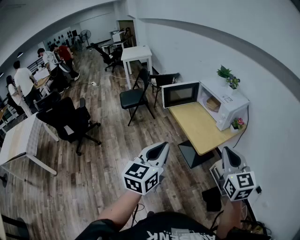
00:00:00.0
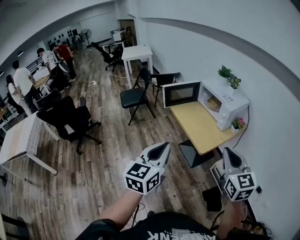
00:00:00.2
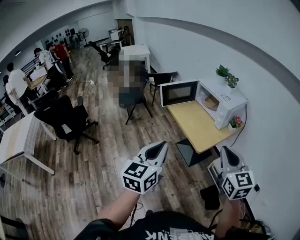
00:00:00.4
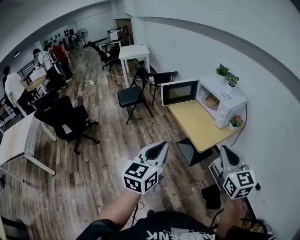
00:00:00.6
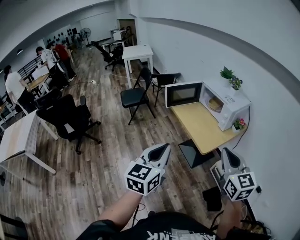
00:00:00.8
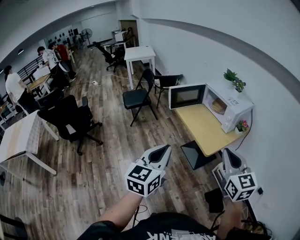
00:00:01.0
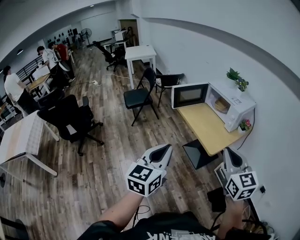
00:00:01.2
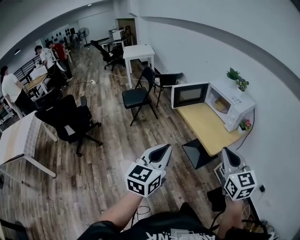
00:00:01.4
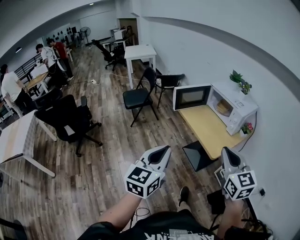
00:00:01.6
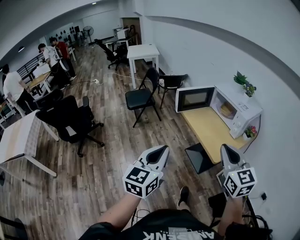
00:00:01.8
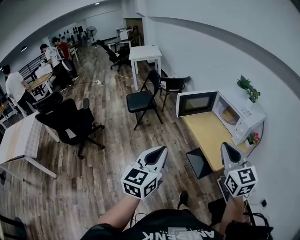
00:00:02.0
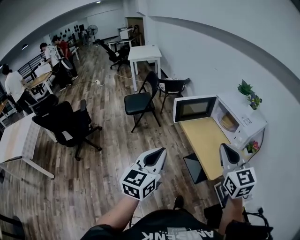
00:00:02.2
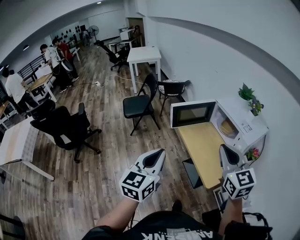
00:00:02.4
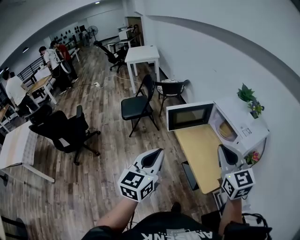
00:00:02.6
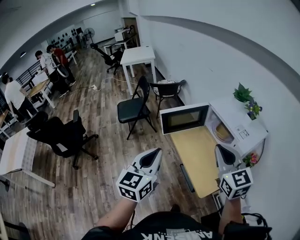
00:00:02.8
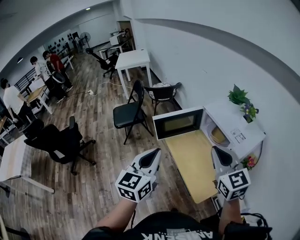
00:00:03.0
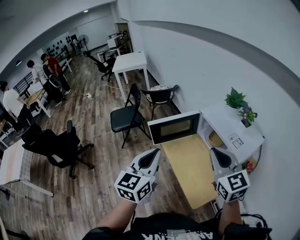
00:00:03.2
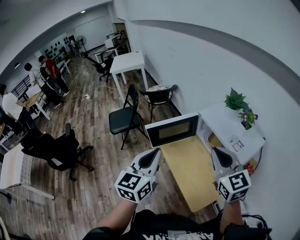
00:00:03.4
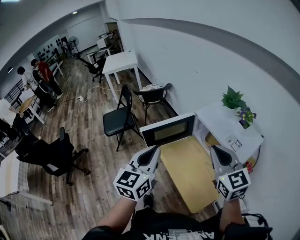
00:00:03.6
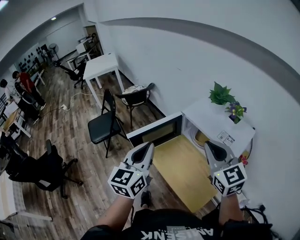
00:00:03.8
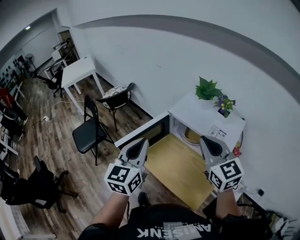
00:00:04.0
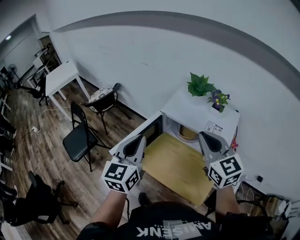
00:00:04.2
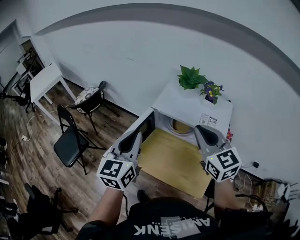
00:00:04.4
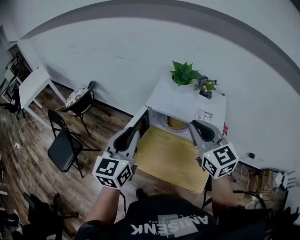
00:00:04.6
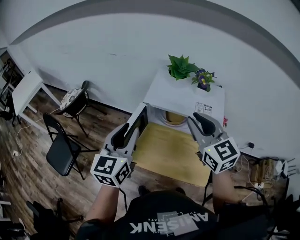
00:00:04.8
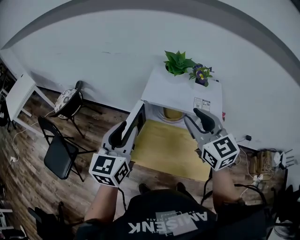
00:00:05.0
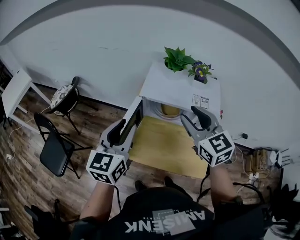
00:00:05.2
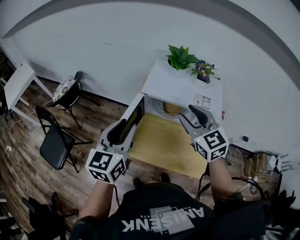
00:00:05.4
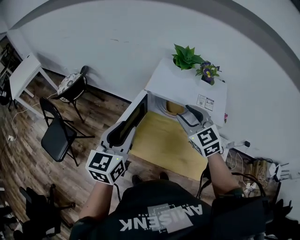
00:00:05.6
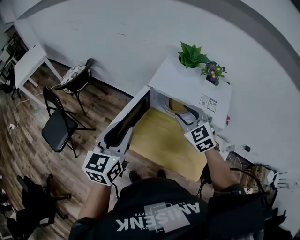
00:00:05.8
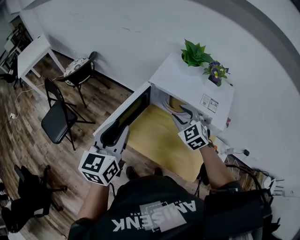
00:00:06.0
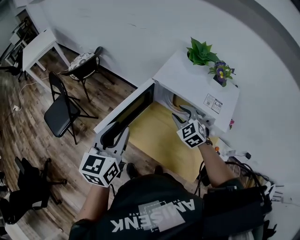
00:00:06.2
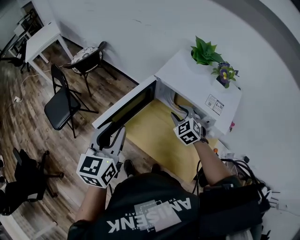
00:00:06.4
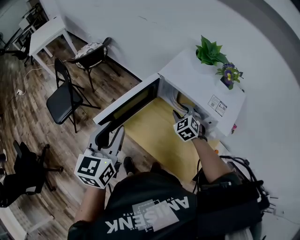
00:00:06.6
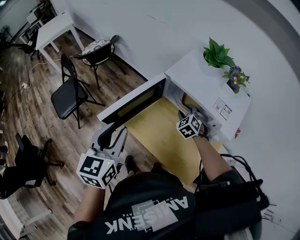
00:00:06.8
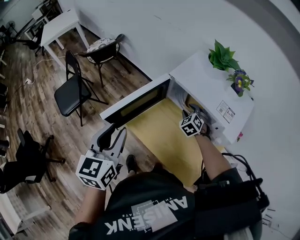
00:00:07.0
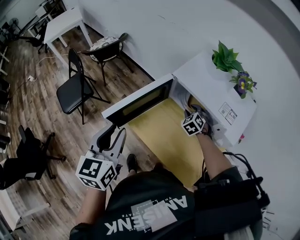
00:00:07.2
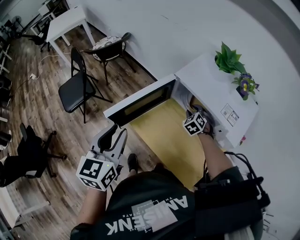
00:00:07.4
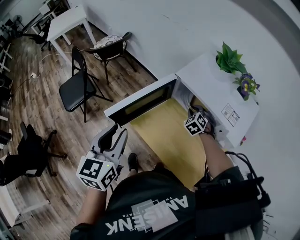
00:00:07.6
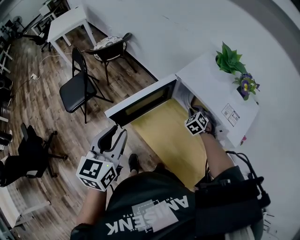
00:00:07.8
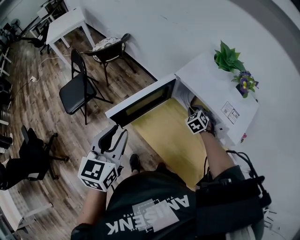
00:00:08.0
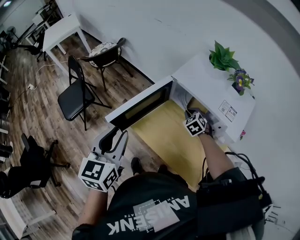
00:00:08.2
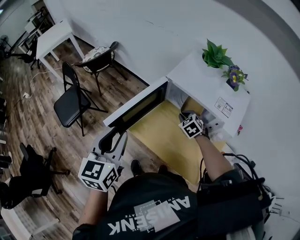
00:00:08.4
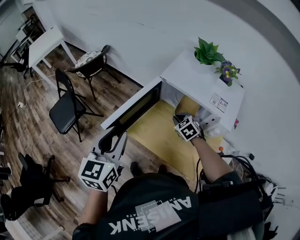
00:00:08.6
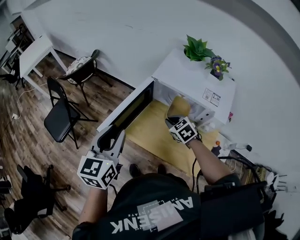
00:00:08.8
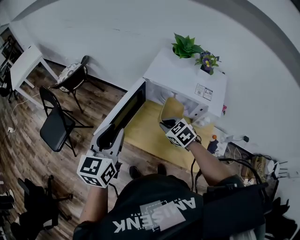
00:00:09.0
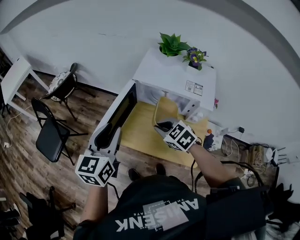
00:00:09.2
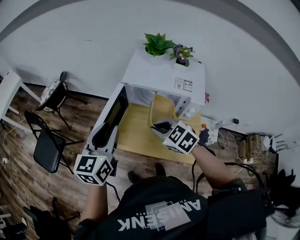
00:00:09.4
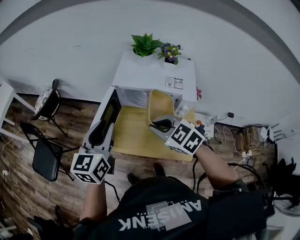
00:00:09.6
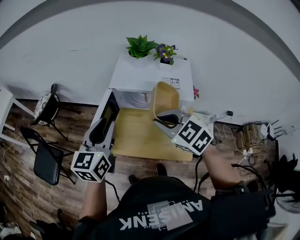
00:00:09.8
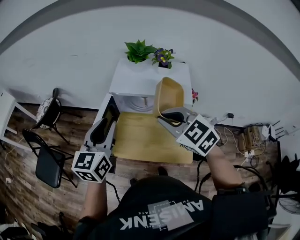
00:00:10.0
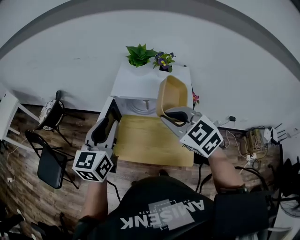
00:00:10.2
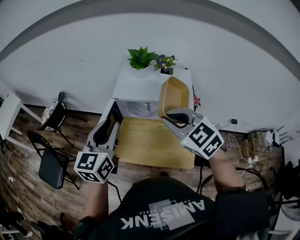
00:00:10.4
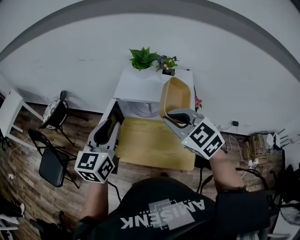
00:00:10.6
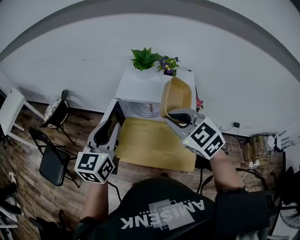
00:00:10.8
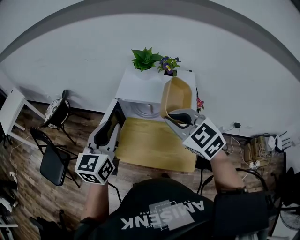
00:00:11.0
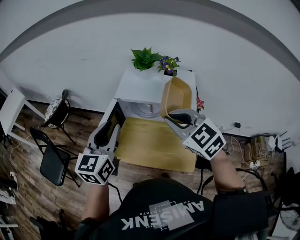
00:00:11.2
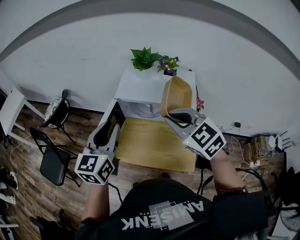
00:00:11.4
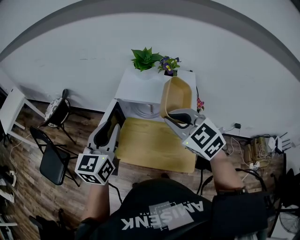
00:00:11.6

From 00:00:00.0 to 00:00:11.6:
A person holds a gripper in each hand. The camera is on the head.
From 00:00:00.0 to 00:00:01.4: Both grippers travel together to the left, some 10 cm.
From 00:00:01.4 to 00:00:02.8: Both grippers move forward, approximately 35 cm.
From 00:00:02.8 to 00:00:04.4: The left gripper shifts by approximately 35 cm, and swivels about 30 degrees, while the right gripper ends up roughly 20 cm from where it was, and swivels some 30 degrees.
From 00:00:04.4 to 00:00:05.8: The left gripper goes about 5 cm downward, and opens. Meanwhile the right gripper shifts approximately 15 cm downward and forward, turns by some 30 degrees, and opens up.
From 00:00:05.8 to 00:00:07.2: The left gripper goes approximately 5 cm backward, and rotates about 20 degrees. The right gripper travels downward and forward by approximately 25 cm, and rotates about 30 degrees.
From 00:00:07.2 to 00:00:08.8: The right gripper moves backward, to the left and upward, roughly 15 cm, changes its angle by some 30 degrees, and closes its fingers.
From 00:00:08.8 to 00:00:10.2: The right gripper heads upward, covering about 25 cm, and turns by some 20 degrees. Meanwhile the left gripper is displaced to the right and upward by some 10 cm, and changes its angle by some 20 degrees.
From 00:00:10.2 to 00:00:11.6: The grippers stay close to where they were, moving slightly.

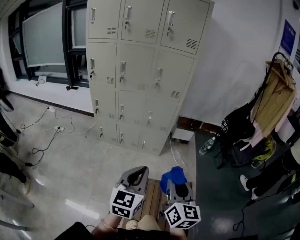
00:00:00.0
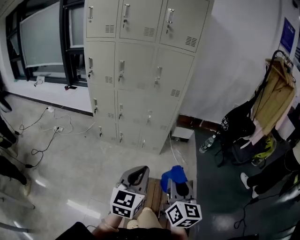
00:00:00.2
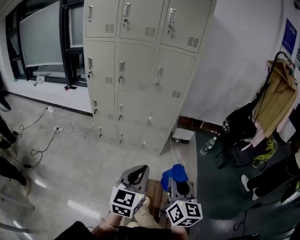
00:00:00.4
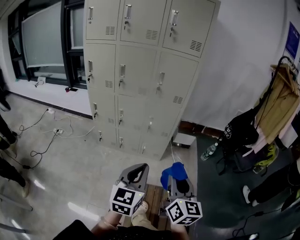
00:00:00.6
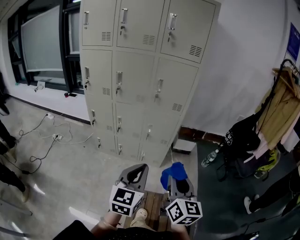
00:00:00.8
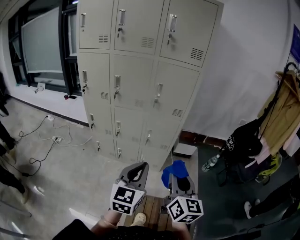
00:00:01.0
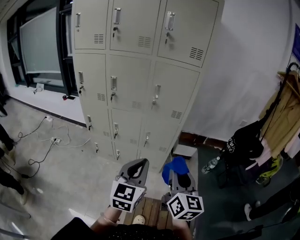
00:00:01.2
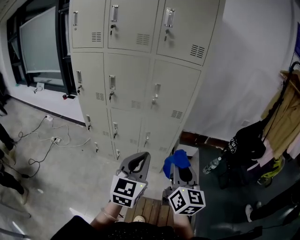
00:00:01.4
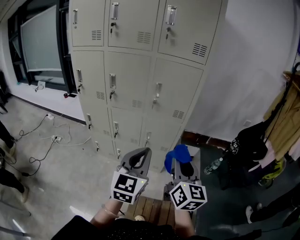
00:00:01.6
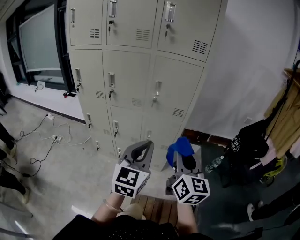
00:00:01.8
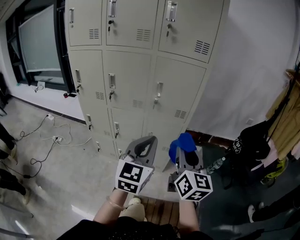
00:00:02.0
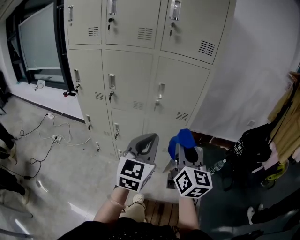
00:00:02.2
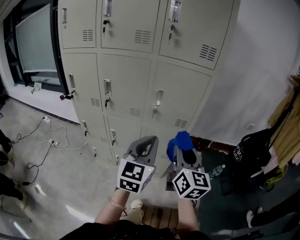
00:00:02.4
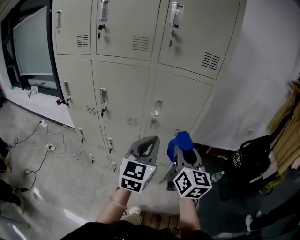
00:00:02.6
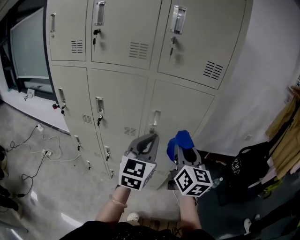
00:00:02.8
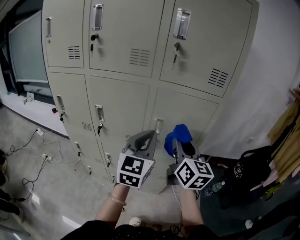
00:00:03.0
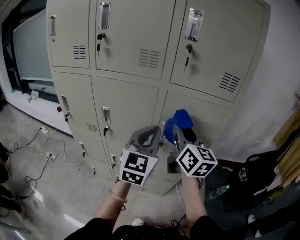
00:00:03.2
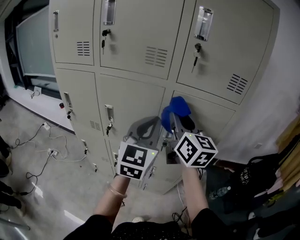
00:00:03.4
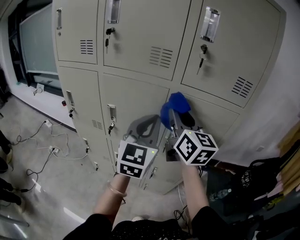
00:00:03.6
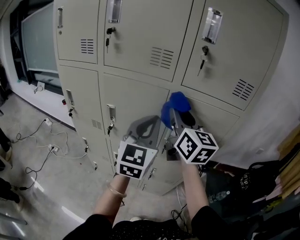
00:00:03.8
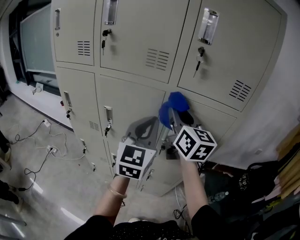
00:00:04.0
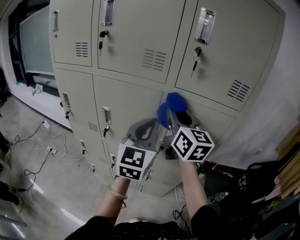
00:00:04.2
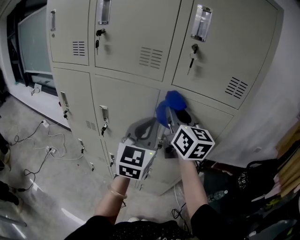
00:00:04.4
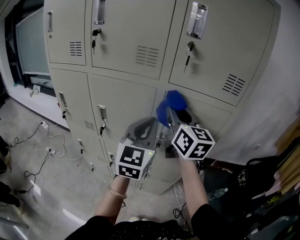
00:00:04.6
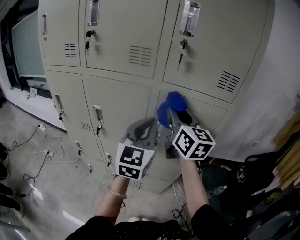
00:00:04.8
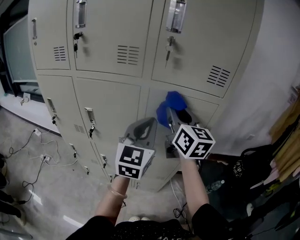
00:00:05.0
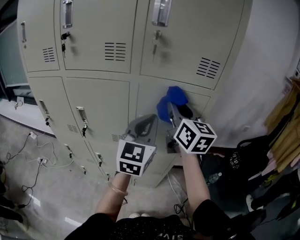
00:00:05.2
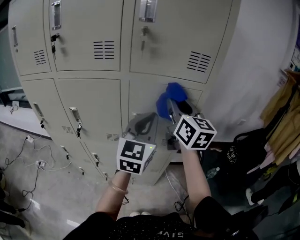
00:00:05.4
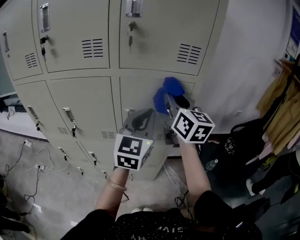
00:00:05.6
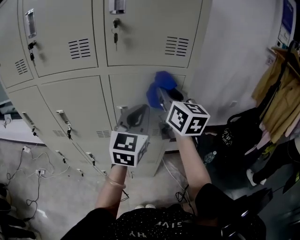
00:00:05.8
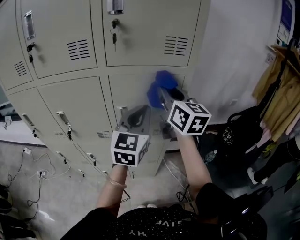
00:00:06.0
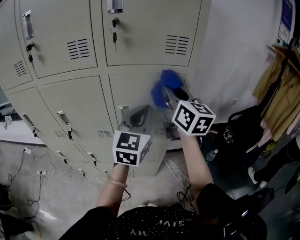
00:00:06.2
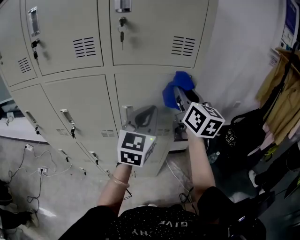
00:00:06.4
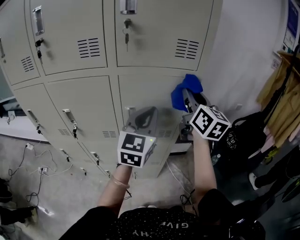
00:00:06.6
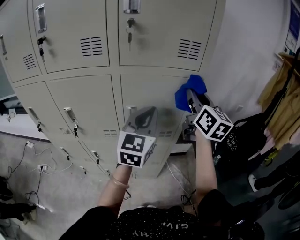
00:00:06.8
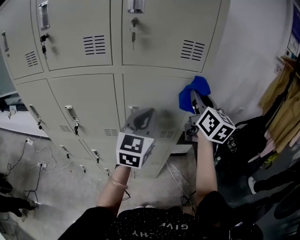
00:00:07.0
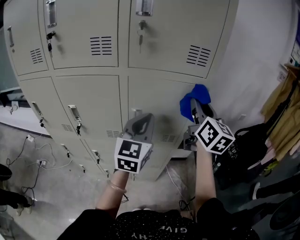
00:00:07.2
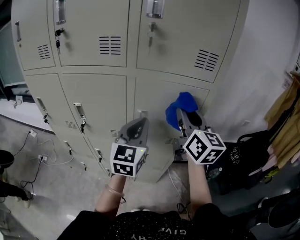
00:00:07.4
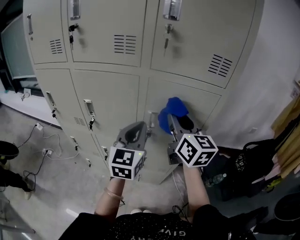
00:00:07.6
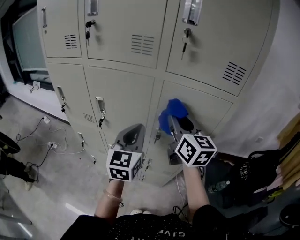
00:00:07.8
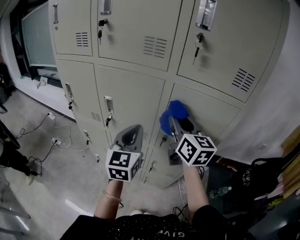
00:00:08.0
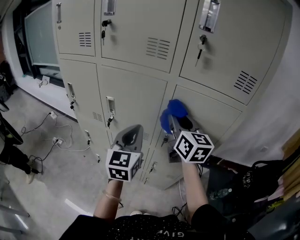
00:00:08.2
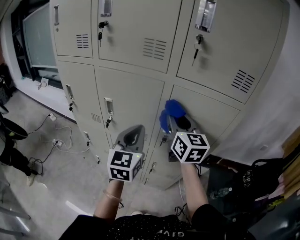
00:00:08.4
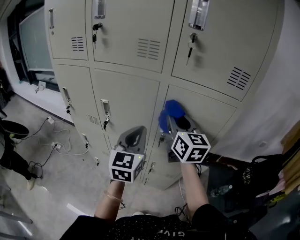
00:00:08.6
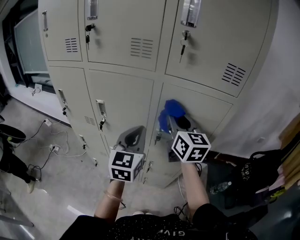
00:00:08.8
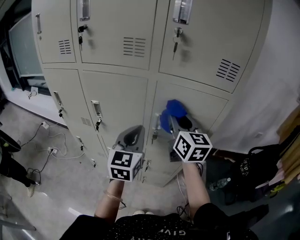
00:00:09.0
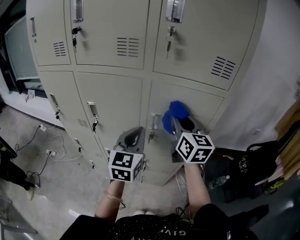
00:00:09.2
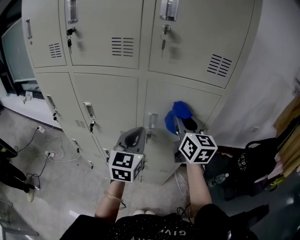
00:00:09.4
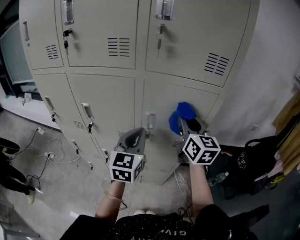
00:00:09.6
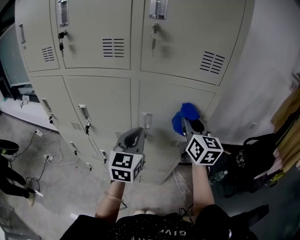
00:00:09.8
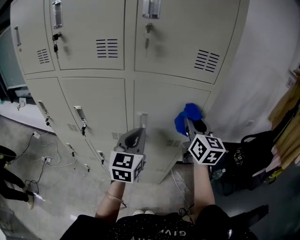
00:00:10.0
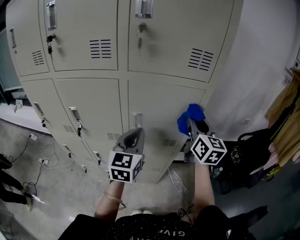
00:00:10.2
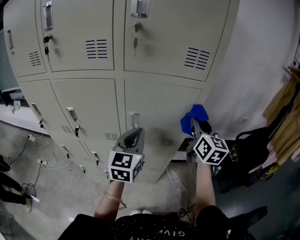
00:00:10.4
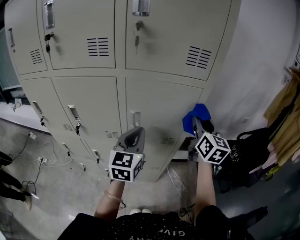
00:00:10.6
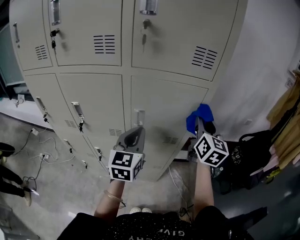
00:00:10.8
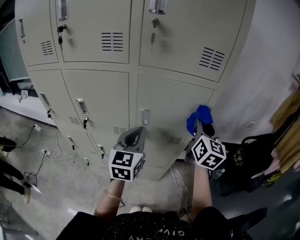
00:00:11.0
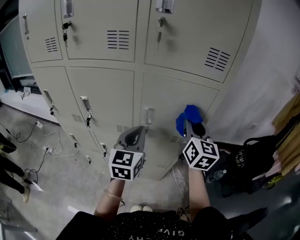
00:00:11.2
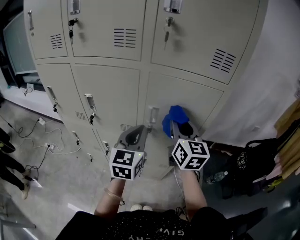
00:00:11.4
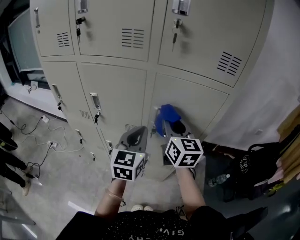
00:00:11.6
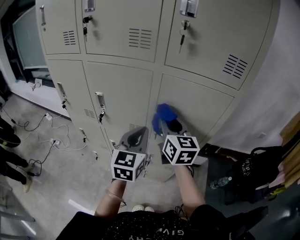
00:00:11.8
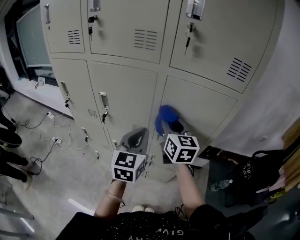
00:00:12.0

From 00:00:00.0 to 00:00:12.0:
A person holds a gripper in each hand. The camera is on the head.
From 00:00:00.0 to 00:00:01.6: Both grippers move forward, approximately 30 cm.
From 00:00:01.6 to 00:00:03.0: The two grippers go about 30 cm forward.
From 00:00:03.0 to 00:00:04.4: The right gripper heads forward, upward and to the left, covering some 15 cm, while the left gripper travels forward by roughly 5 cm.
From 00:00:04.4 to 00:00:06.0: Both grippers travel together to the right, roughly 15 cm.
From 00:00:06.0 to 00:00:07.6: The right gripper travels to the left by roughly 10 cm; the left gripper travels to the left by about 10 cm.
From 00:00:09.0 to 00:00:10.4: The left gripper shifts approximately 10 cm to the right; the right gripper moves to the right, approximately 20 cm.
From 00:00:10.4 to 00:00:12.0: The right gripper moves to the left, some 25 cm, and swivels about 20 degrees. Meanwhile the left gripper shifts approximately 10 cm to the left.
